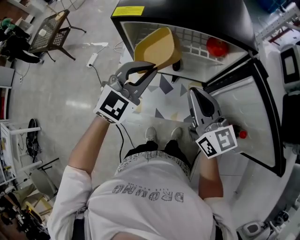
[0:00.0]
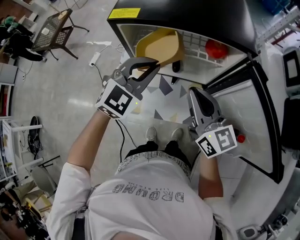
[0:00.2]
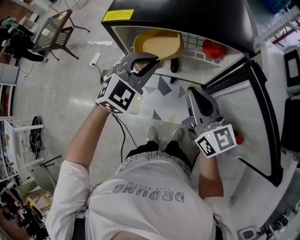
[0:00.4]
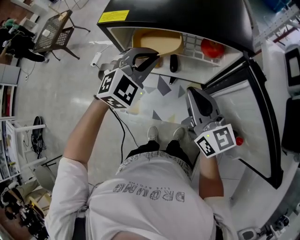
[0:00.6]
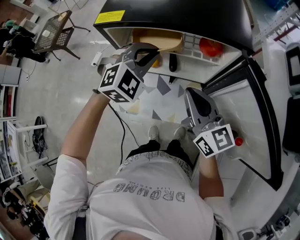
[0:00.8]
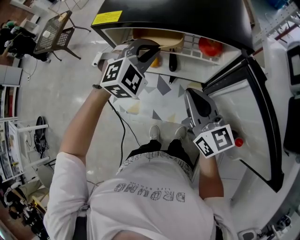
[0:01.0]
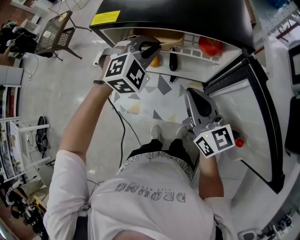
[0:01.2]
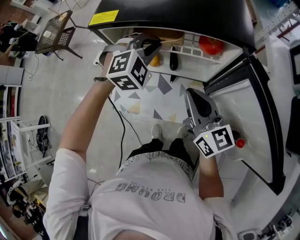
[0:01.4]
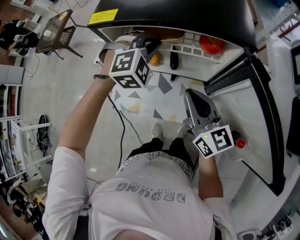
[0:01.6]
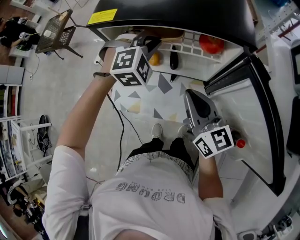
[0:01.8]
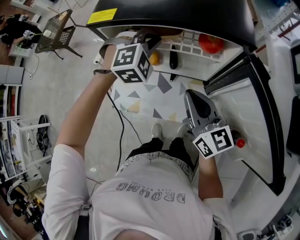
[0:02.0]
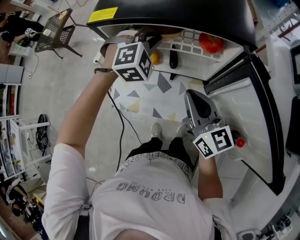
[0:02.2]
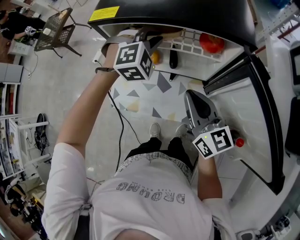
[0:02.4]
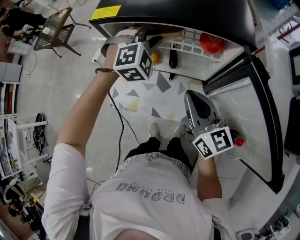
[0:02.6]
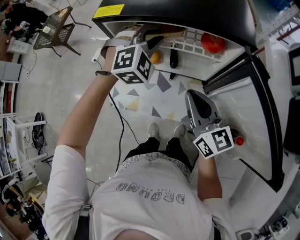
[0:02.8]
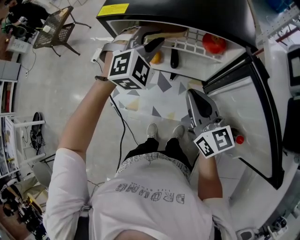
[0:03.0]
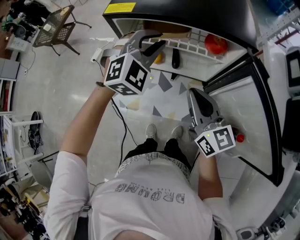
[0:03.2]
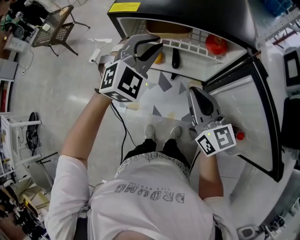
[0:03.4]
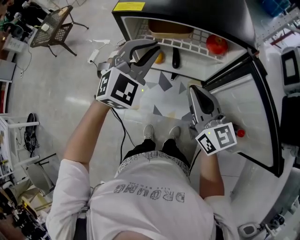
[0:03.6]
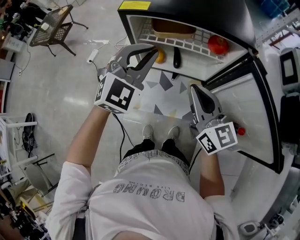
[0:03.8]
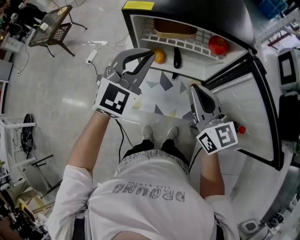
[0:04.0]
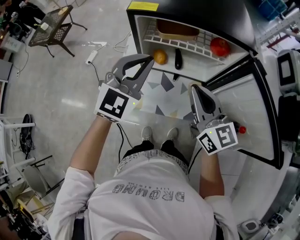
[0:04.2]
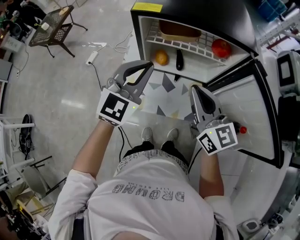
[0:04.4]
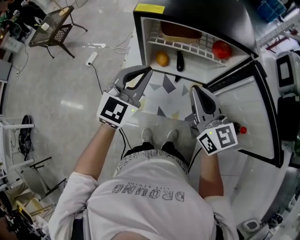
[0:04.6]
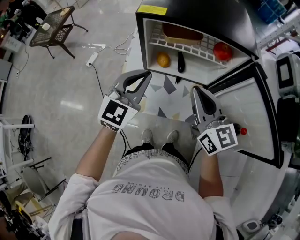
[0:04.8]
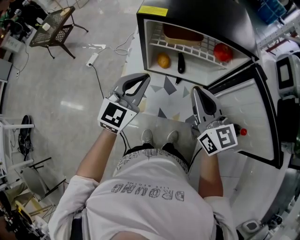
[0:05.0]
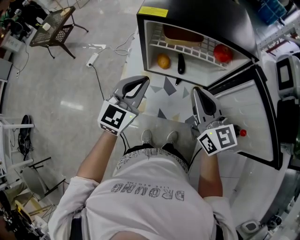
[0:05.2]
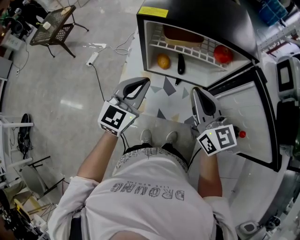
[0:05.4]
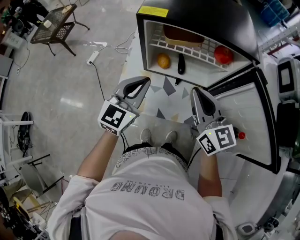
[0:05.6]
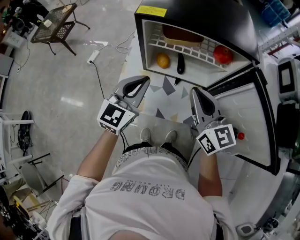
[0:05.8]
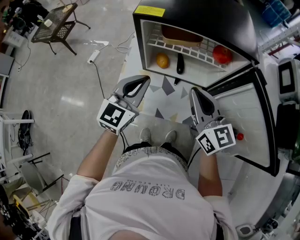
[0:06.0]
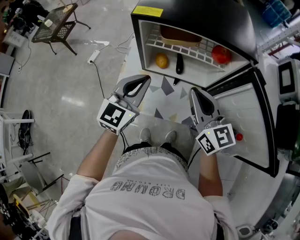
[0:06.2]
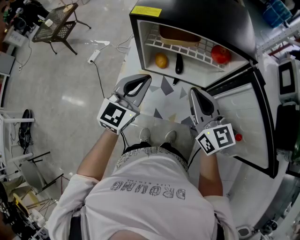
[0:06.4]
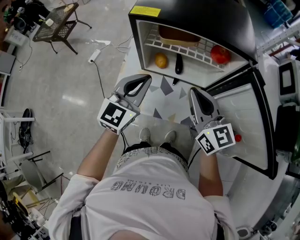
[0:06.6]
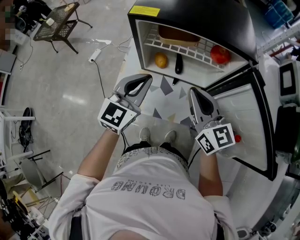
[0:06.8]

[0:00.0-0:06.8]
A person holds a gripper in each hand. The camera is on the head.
0.0 to 1.4 s: The right gripper ends up some 5 cm from where it was. Meanwhile the left gripper goes roughly 10 cm forward, and changes its angle by about 40 degrees.
1.4 to 2.8 s: The grippers make only small movements.
2.8 to 4.0 s: The left gripper moves backward, to the left and upward, approximately 15 cm, and changes its angle by about 40 degrees, while the right gripper is displaced upward by approximately 5 cm.
4.0 to 5.4 s: The left gripper heads downward, covering approximately 5 cm, and turns by approximately 20 degrees.
5.4 to 6.8 s: The grippers move only a little.

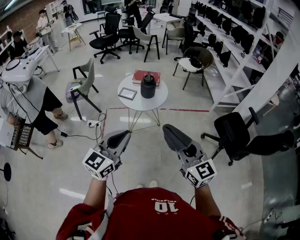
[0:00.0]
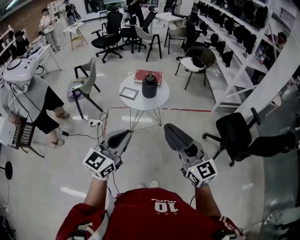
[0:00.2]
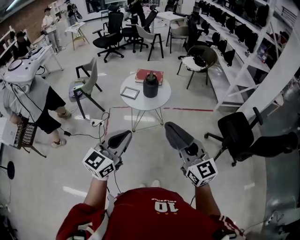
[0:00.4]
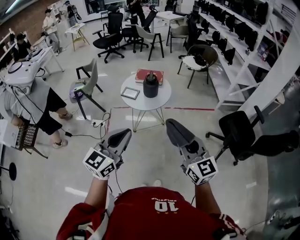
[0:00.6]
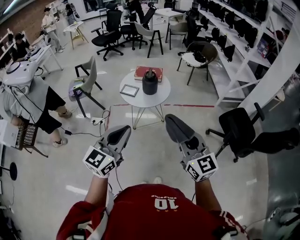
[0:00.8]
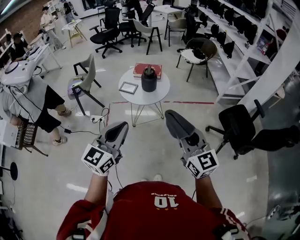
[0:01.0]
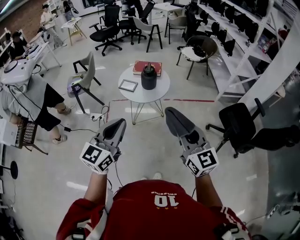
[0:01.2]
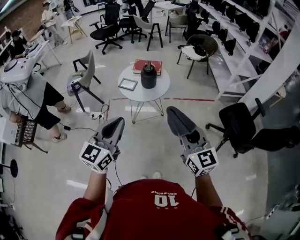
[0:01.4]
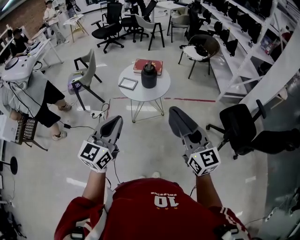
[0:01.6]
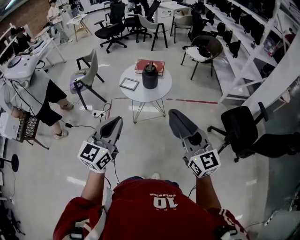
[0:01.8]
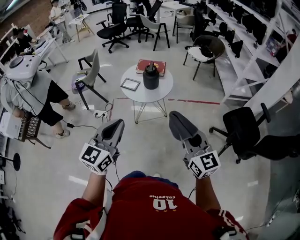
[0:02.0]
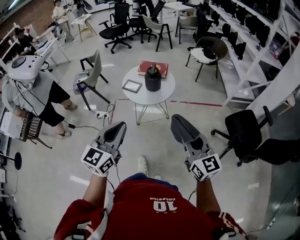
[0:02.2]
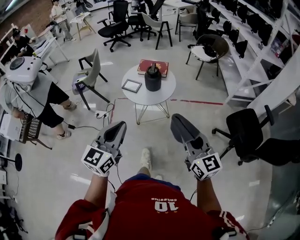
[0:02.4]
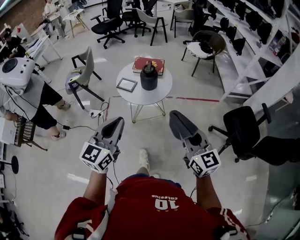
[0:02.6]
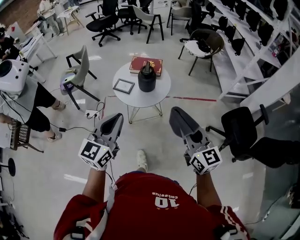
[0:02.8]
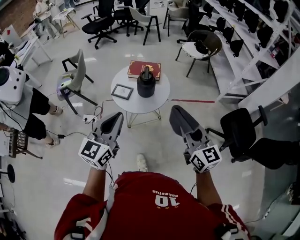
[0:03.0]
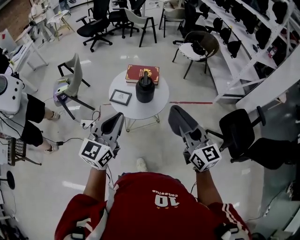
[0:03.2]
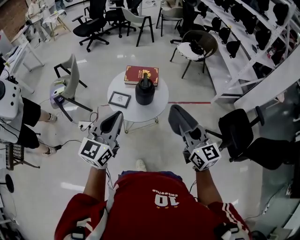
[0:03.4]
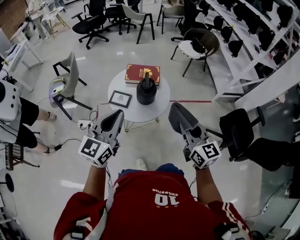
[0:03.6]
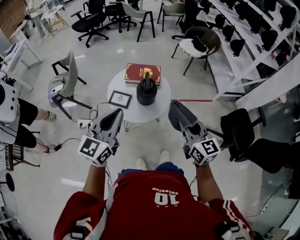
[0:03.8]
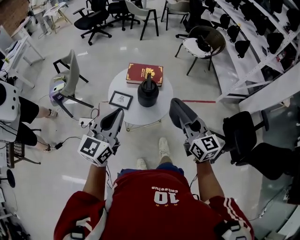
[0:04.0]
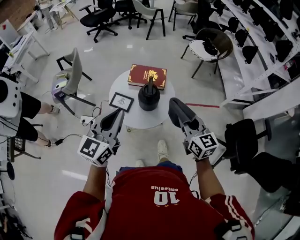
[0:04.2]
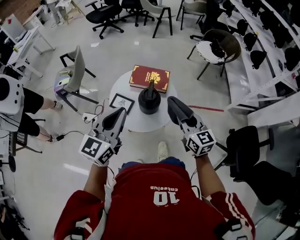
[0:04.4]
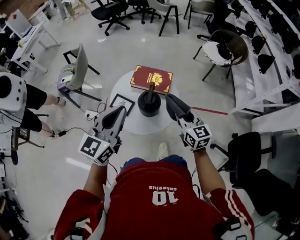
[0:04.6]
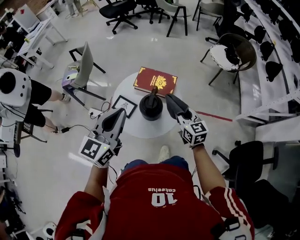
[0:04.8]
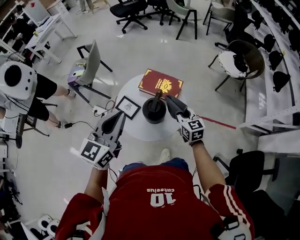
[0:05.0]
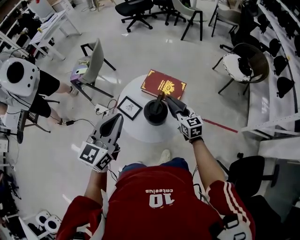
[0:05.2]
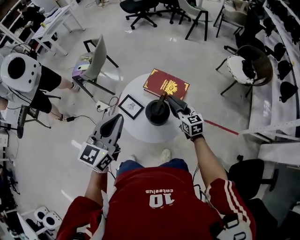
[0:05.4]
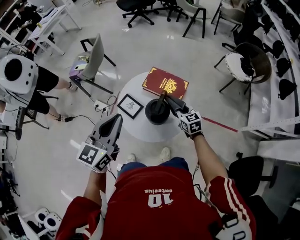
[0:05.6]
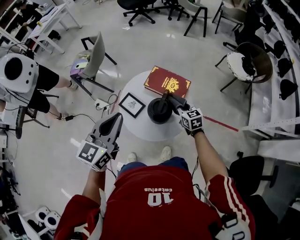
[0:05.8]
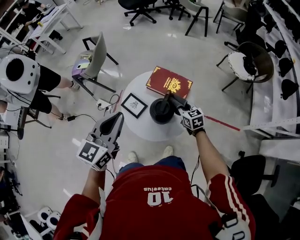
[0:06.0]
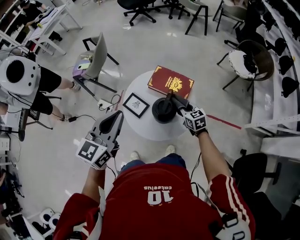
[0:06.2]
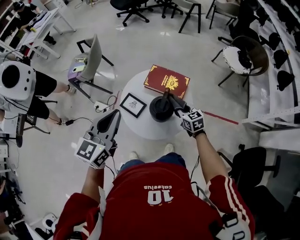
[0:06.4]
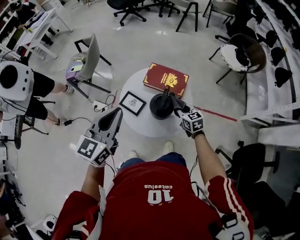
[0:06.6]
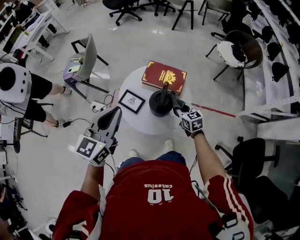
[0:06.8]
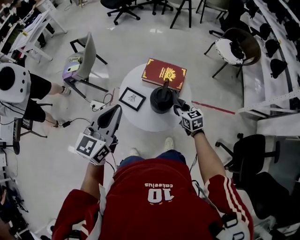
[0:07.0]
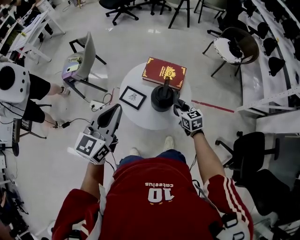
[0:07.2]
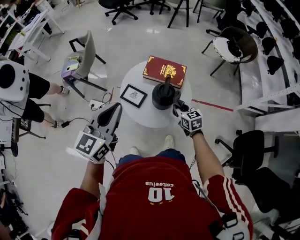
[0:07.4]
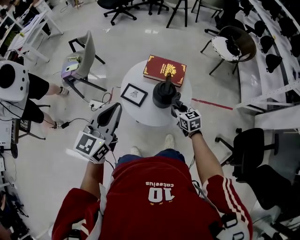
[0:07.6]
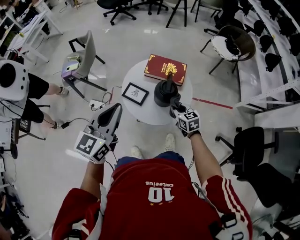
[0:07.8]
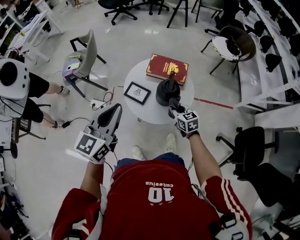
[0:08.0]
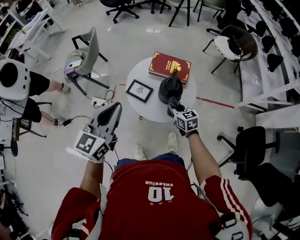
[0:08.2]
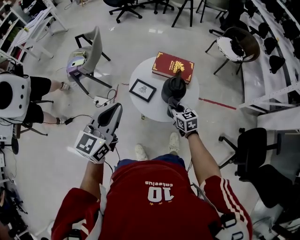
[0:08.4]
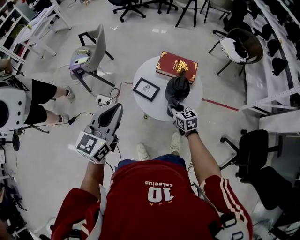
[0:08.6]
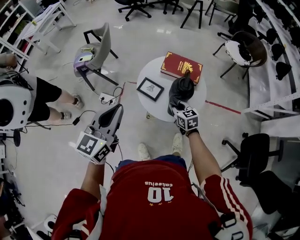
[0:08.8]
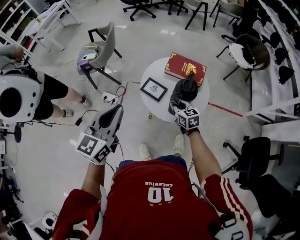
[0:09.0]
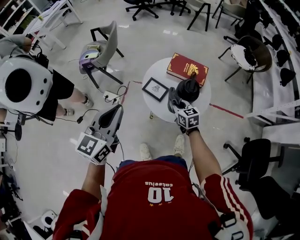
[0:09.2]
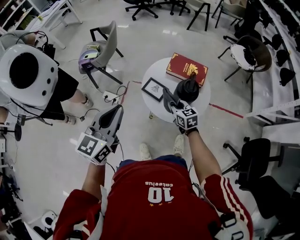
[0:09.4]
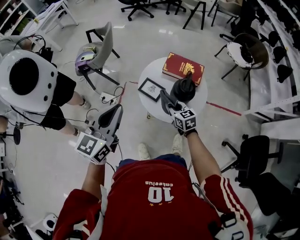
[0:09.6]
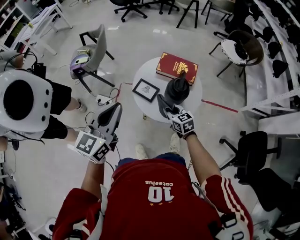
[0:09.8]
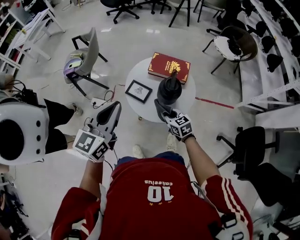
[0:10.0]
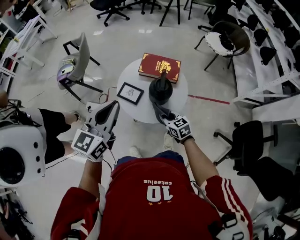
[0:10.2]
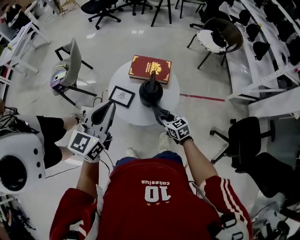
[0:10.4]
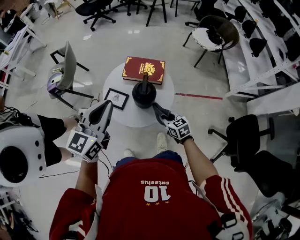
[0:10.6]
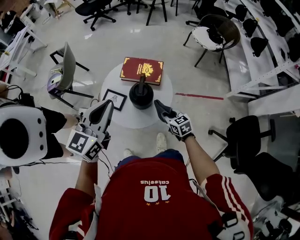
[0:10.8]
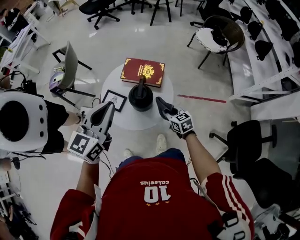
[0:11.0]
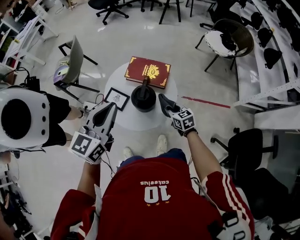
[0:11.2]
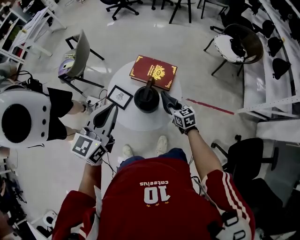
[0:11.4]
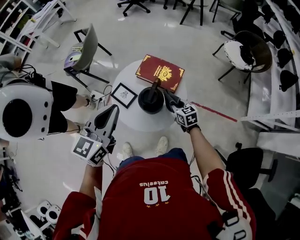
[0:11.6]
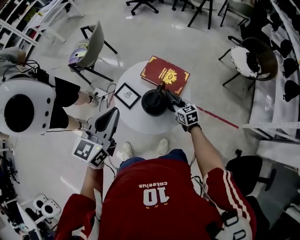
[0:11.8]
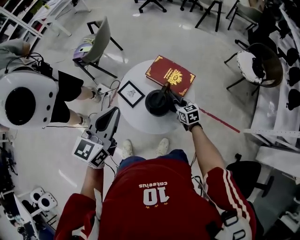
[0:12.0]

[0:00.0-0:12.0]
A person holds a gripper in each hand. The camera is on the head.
0.0 to 1.6 s: The right gripper shifts approximately 10 cm forward and to the right.
1.6 to 3.0 s: Both grippers move forward, some 20 cm.
3.0 to 4.4 s: The grippers both shift forward by some 25 cm.
4.4 to 6.0 s: The left gripper travels forward by roughly 5 cm; the right gripper shifts some 30 cm forward and downward, and swivels approximately 30 degrees.
6.0 to 7.6 s: The right gripper moves backward, about 10 cm. The left gripper travels to the left by some 5 cm.
7.6 to 9.0 s: Both grippers move to the left, approximately 10 cm.
9.0 to 10.4 s: The right gripper is displaced to the right and backward by about 15 cm; the left gripper travels to the right by roughly 15 cm.
10.4 to 12.0 s: The left gripper heads to the right, covering roughly 5 cm, and changes its angle by roughly 20 degrees; the right gripper heads forward and to the right, covering about 20 cm.

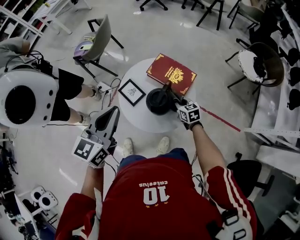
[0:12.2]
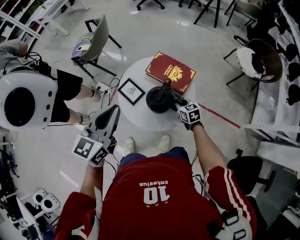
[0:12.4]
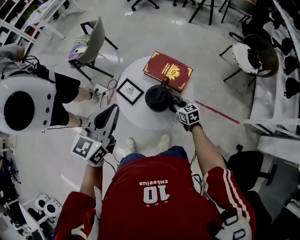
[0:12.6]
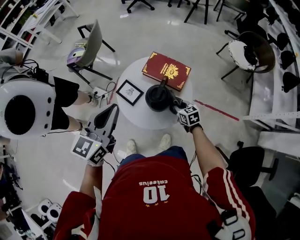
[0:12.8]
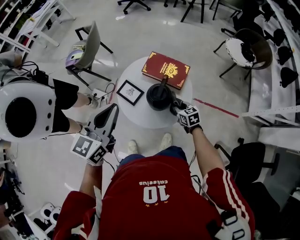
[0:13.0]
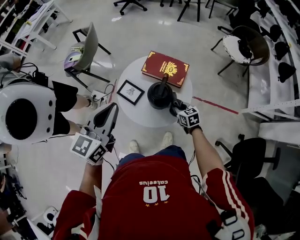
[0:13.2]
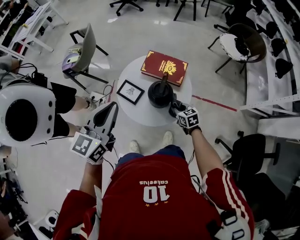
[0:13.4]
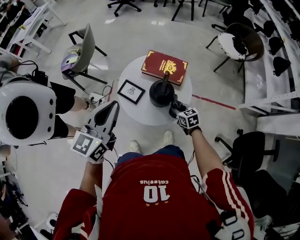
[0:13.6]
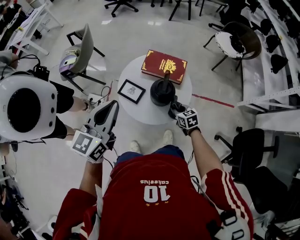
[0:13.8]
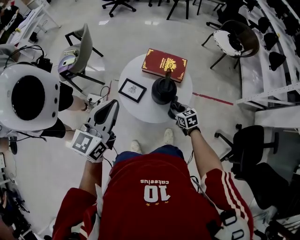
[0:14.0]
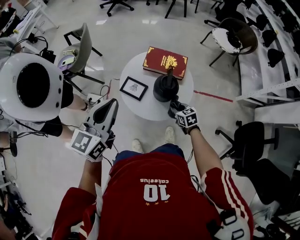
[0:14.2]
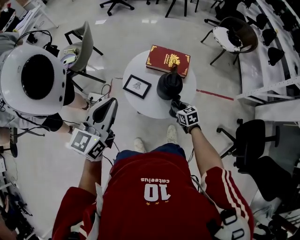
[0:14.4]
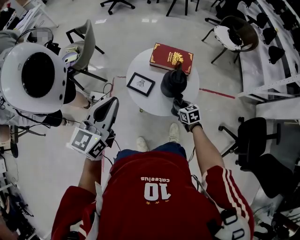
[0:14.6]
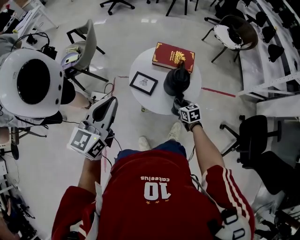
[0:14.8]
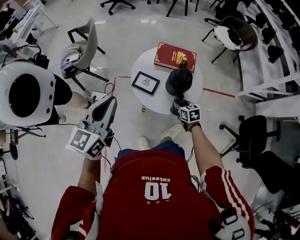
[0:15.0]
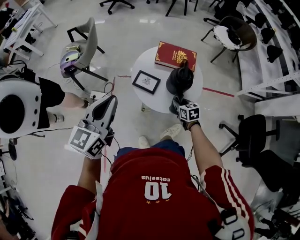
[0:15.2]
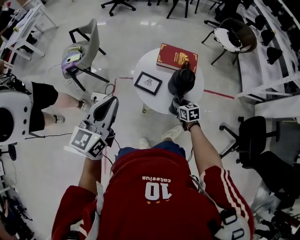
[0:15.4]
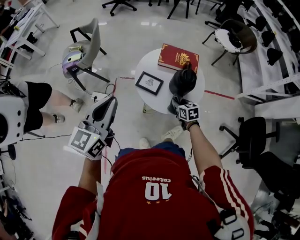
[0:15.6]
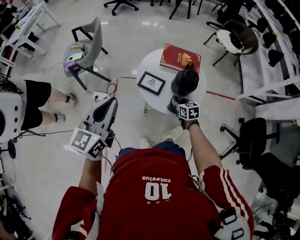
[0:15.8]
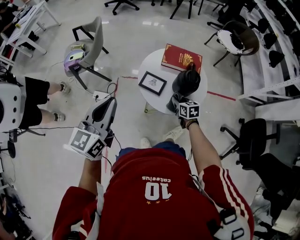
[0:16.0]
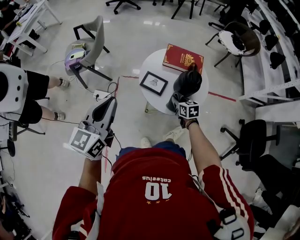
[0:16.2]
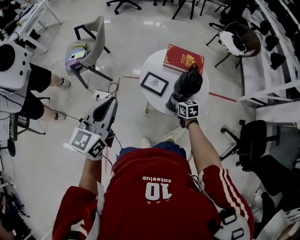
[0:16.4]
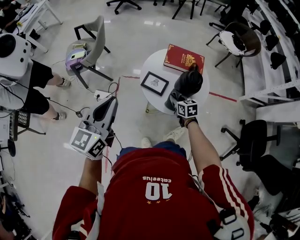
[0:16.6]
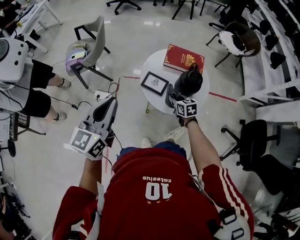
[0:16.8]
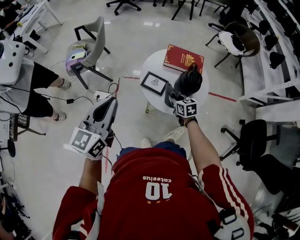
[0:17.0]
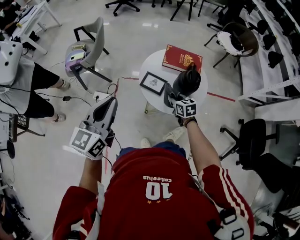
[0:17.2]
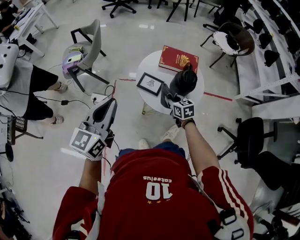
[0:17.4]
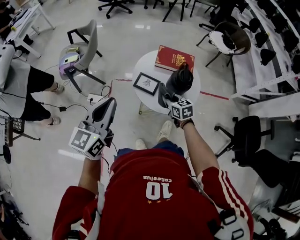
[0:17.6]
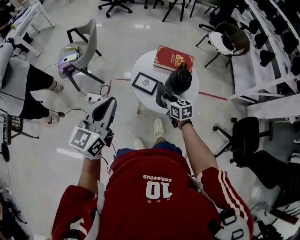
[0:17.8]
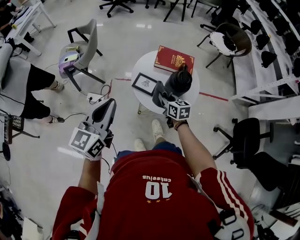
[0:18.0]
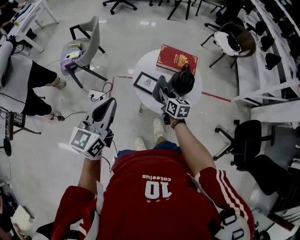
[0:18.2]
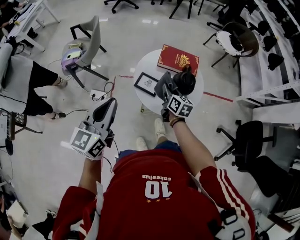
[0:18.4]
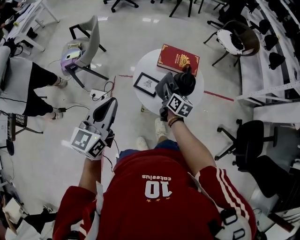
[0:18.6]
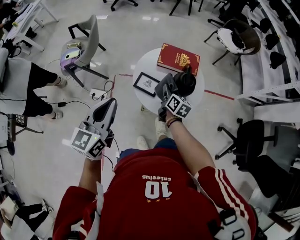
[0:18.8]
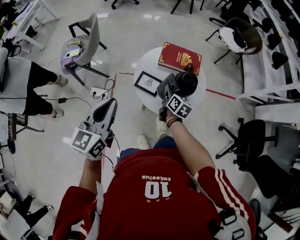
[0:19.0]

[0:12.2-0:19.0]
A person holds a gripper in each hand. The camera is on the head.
12.2 to 13.6 s: The right gripper moves backward, roughly 10 cm; the left gripper travels to the left by approximately 5 cm.
13.6 to 15.0 s: The two grippers go approximately 10 cm to the left.
15.0 to 16.2 s: The grippers both shift to the left by some 5 cm.
16.2 to 17.6 s: The right gripper goes about 5 cm upward.
17.6 to 19.0 s: The right gripper shifts approximately 10 cm forward, and swivels approximately 40 degrees; the left gripper shifts by approximately 5 cm.
